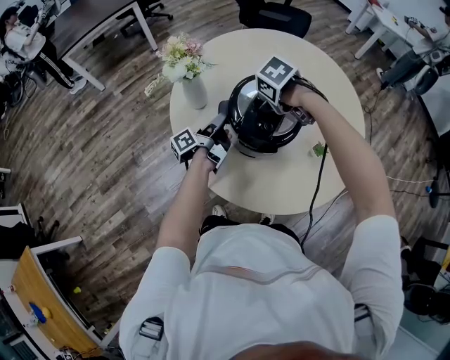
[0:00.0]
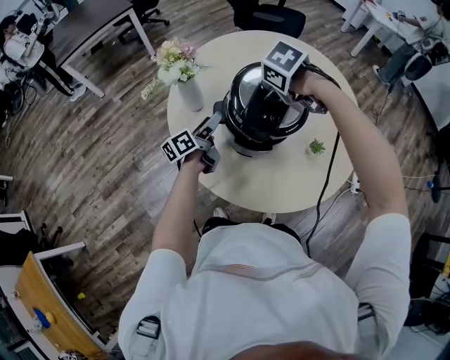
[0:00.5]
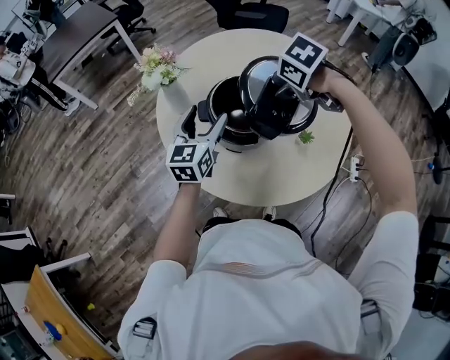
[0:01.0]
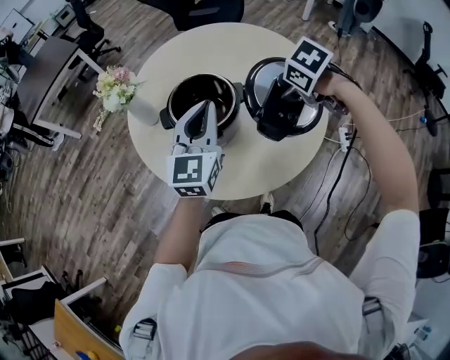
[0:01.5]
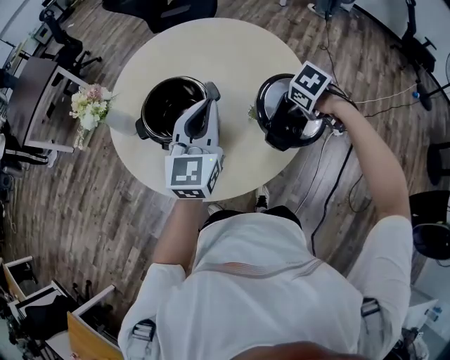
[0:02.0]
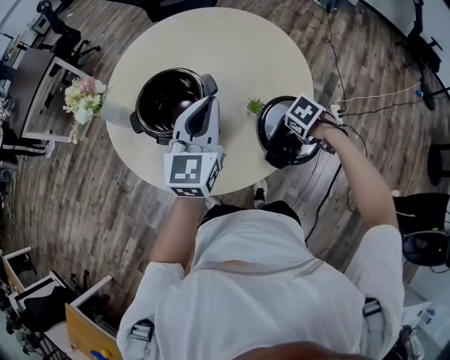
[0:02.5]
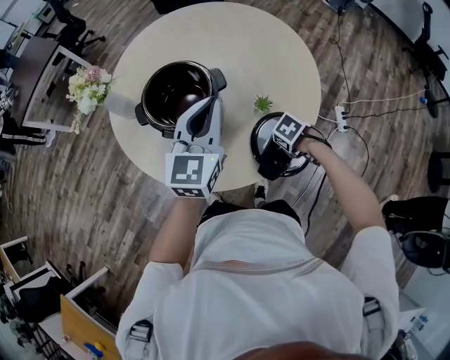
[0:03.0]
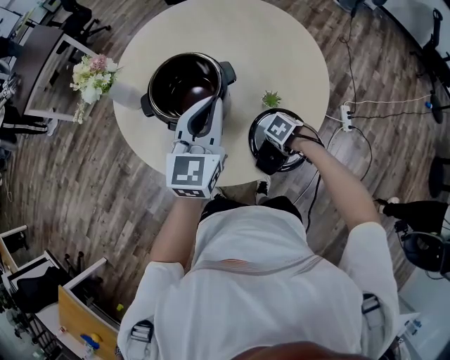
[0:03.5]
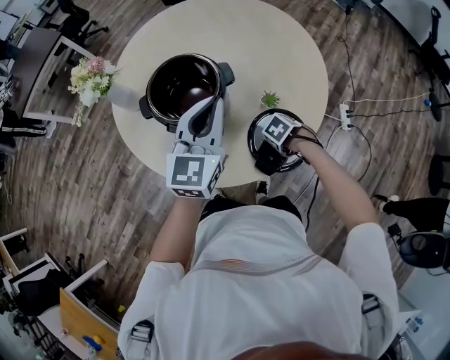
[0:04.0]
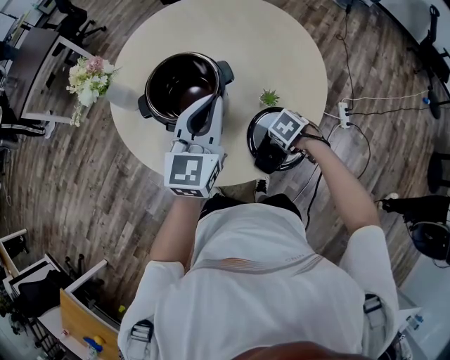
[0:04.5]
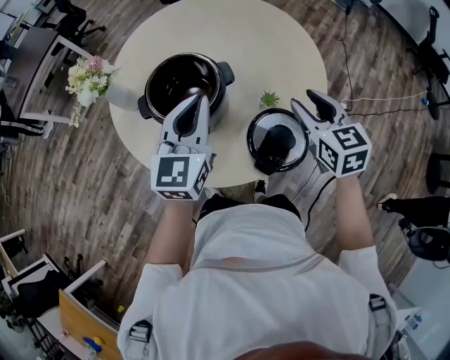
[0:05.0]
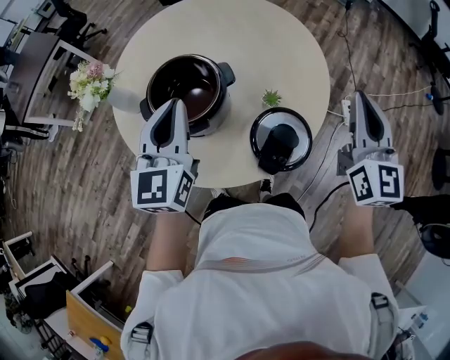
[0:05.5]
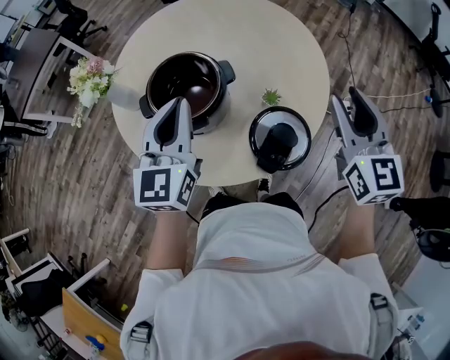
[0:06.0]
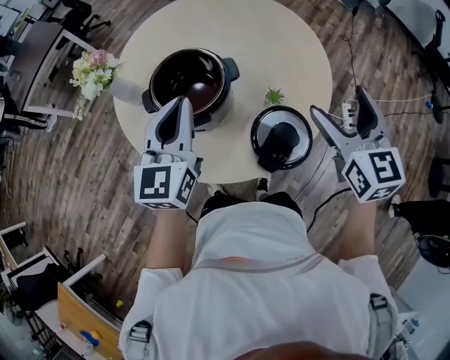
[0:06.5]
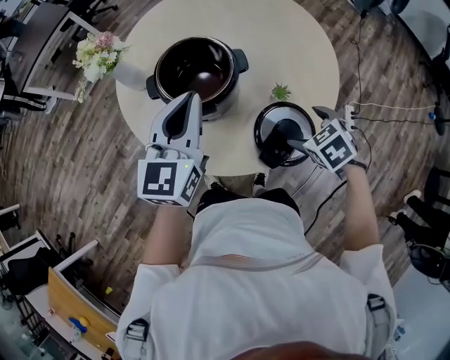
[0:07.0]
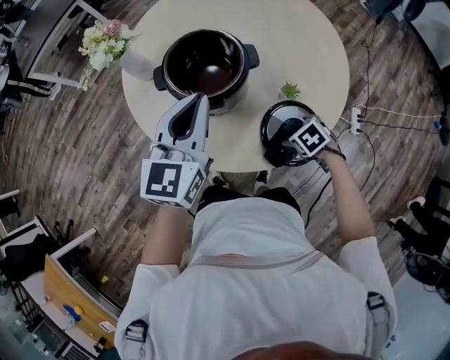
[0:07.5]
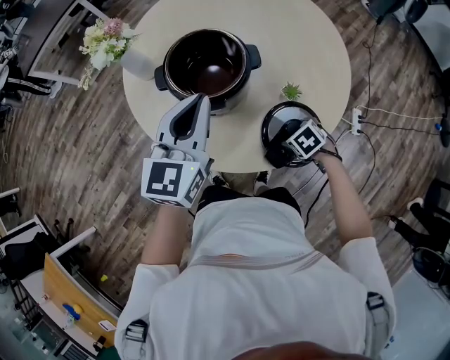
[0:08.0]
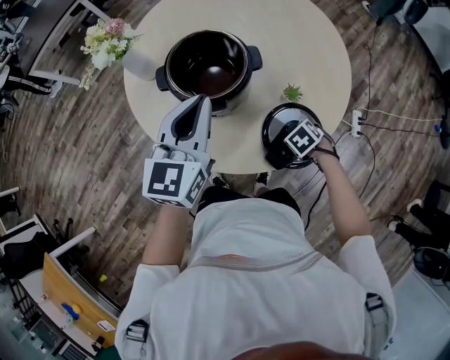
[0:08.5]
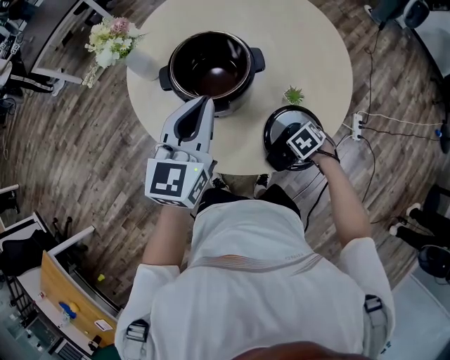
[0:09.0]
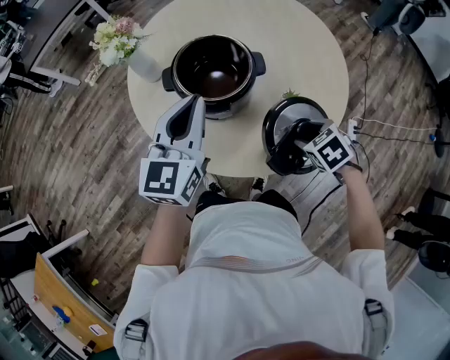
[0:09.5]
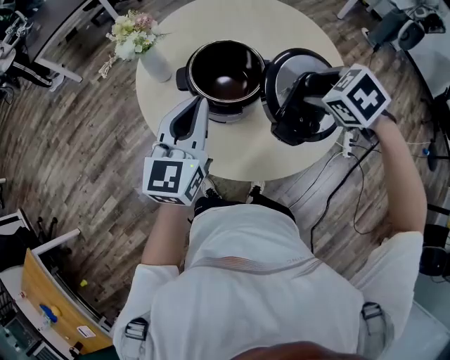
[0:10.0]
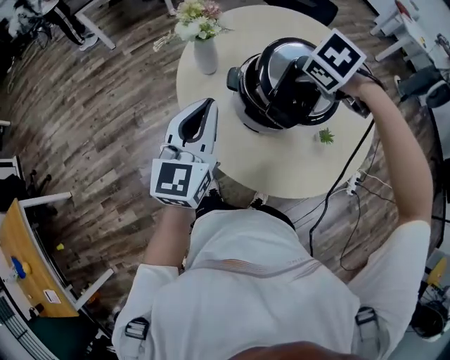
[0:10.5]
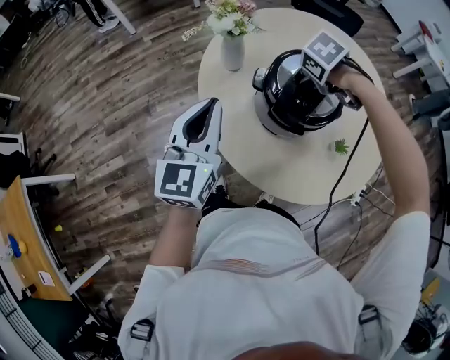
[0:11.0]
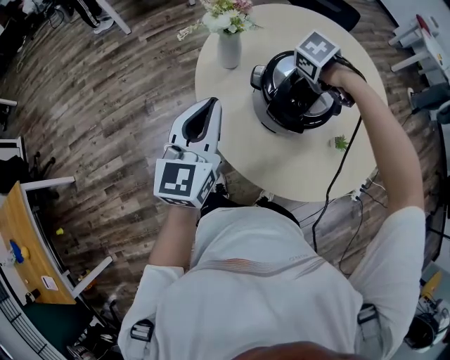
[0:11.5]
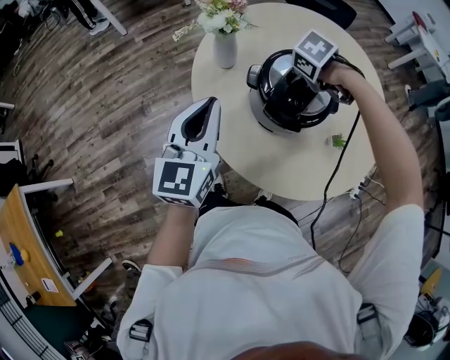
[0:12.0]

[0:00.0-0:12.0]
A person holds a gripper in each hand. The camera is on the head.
0:00.0 to 0:02.0: The right gripper moves about 10 cm upward and comes back, and changes its angle by some 20 degrees. The left gripper changes place by approximately 35 cm, rolls clockwise, seen from behind, by about 90 degrees, and opens and closes again.
0:02.0 to 0:04.0: The left gripper changes place by some 5 cm; the right gripper goes roughly 20 cm downward.
0:04.0 to 0:06.0: The right gripper goes approximately 40 cm upward, and tips its fingers upward by approximately 70 degrees, while the left gripper moves approximately 10 cm.
0:06.0 to 0:08.0: The right gripper is displaced downward by approximately 35 cm, points its fingers some 70 degrees further downward, and opens.
0:08.0 to 0:10.0: The left gripper changes place by some 5 cm, while the right gripper shifts roughly 30 cm upward, and swivels roughly 20 degrees.
0:10.0 to 0:12.0: The right gripper shifts by approximately 25 cm, and turns by some 20 degrees. Meanwhile the left gripper changes place by approximately 15 cm.

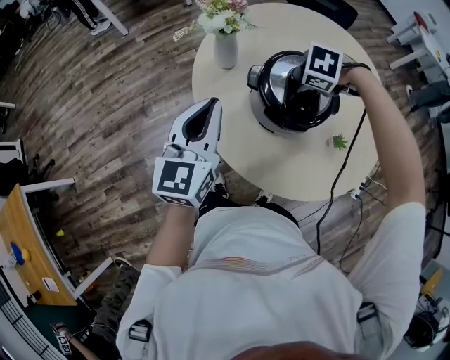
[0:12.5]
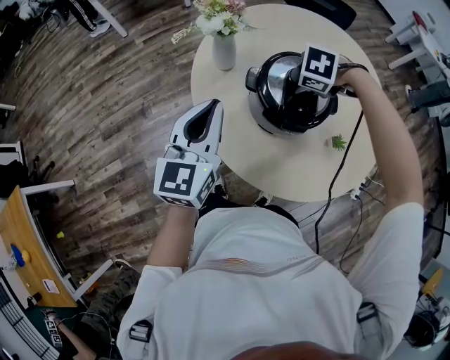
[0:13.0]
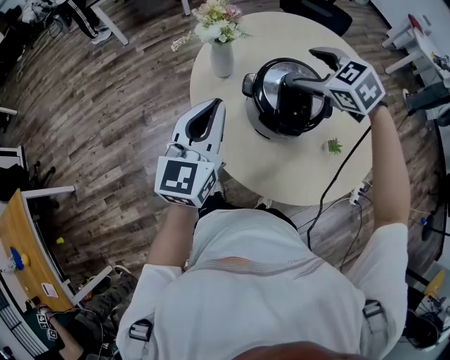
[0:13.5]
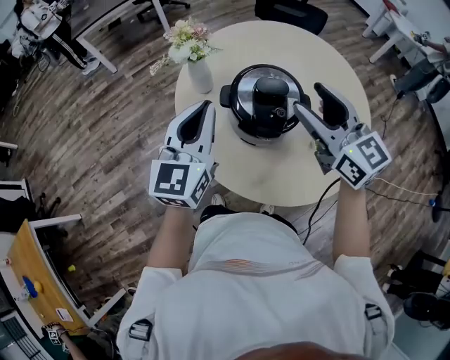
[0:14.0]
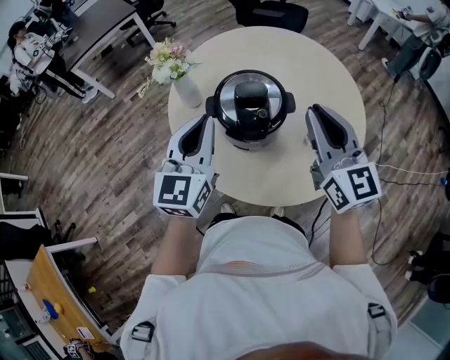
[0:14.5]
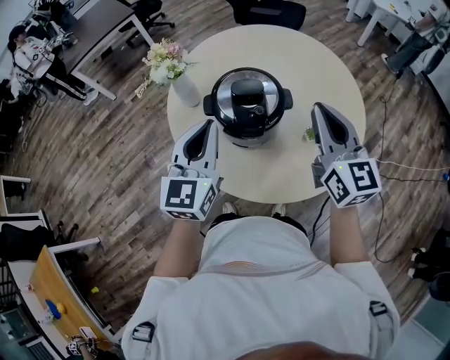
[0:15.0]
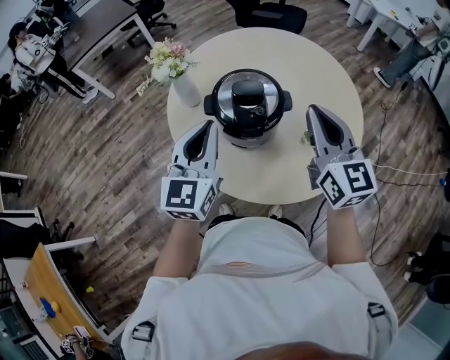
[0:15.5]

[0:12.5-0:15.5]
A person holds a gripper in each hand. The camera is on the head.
0:12.5 to 0:14.0: The left gripper moves about 10 cm. Meanwhile the right gripper shifts about 20 cm upward, and angles its fingers upward, by some 80 degrees.
0:14.0 to 0:15.5: The left gripper goes approximately 5 cm to the right; the right gripper moves to the right and backward, some 10 cm, turns by roughly 20 degrees, and closes up.

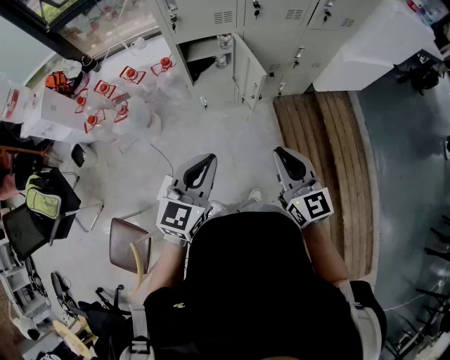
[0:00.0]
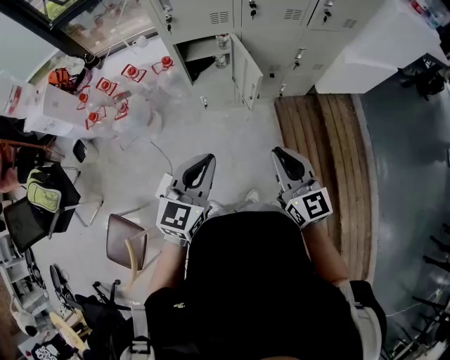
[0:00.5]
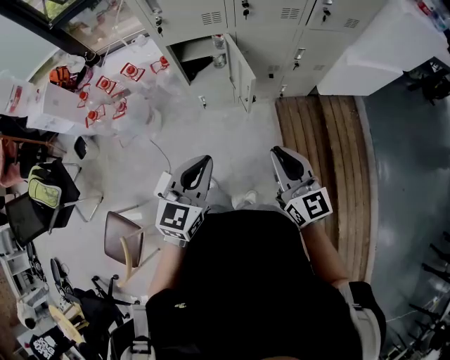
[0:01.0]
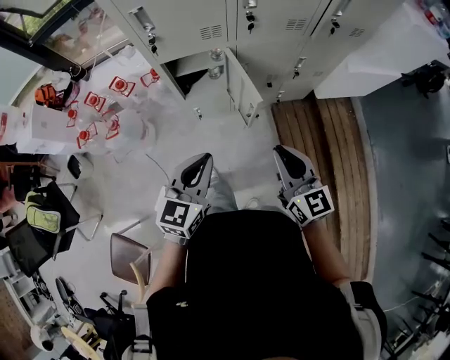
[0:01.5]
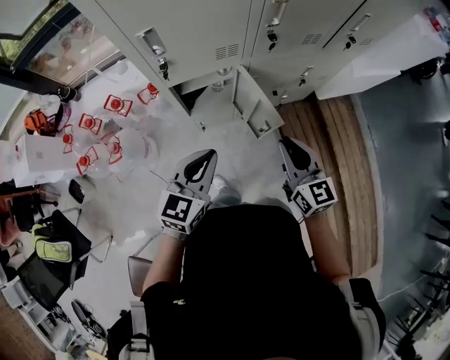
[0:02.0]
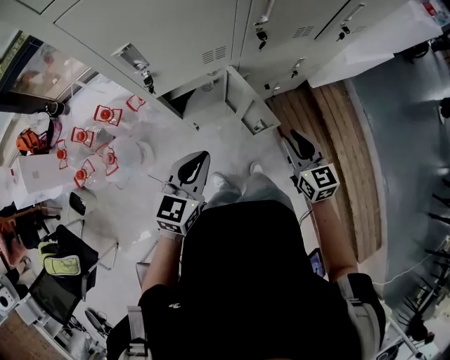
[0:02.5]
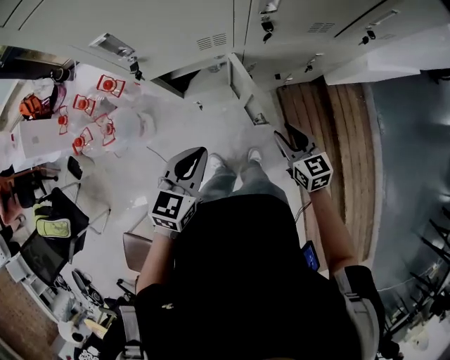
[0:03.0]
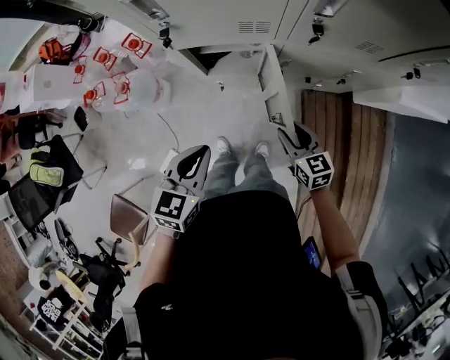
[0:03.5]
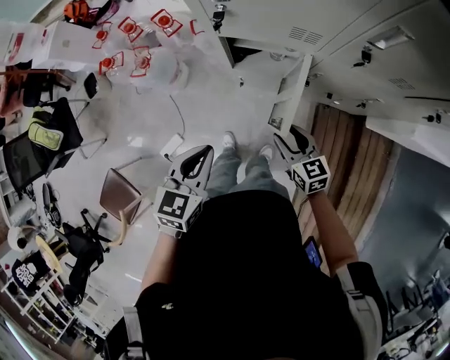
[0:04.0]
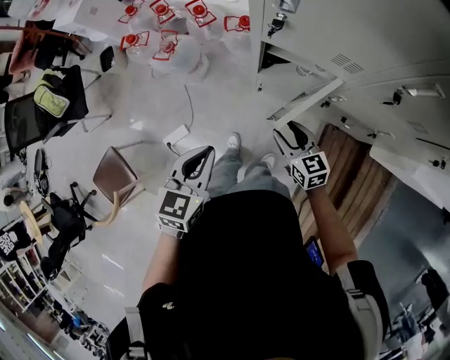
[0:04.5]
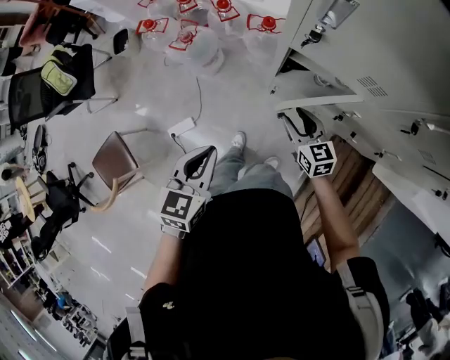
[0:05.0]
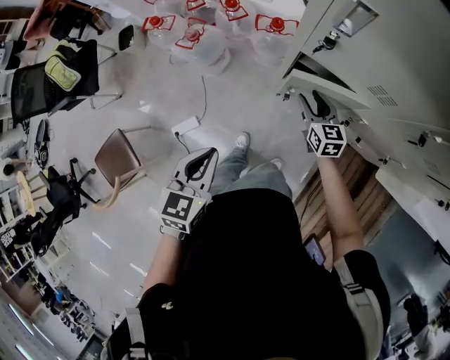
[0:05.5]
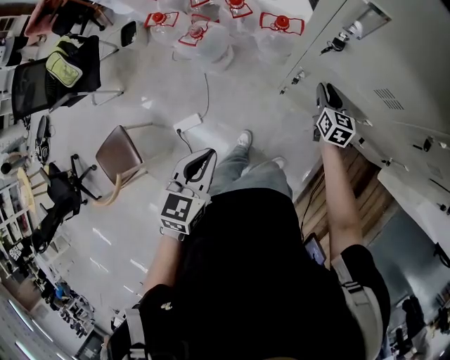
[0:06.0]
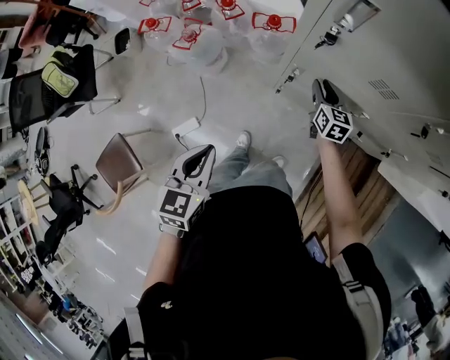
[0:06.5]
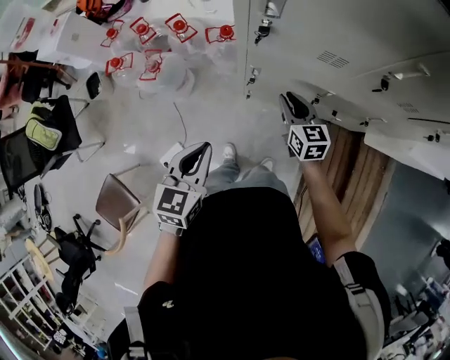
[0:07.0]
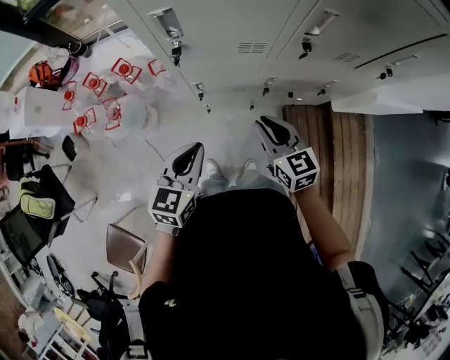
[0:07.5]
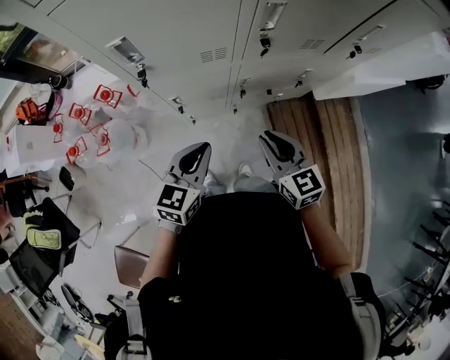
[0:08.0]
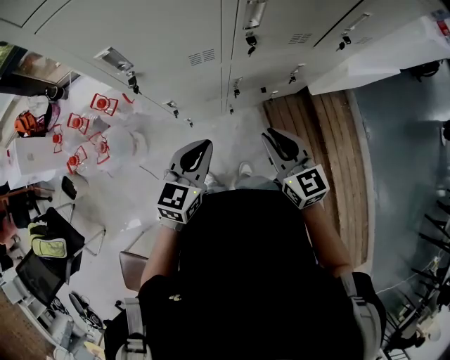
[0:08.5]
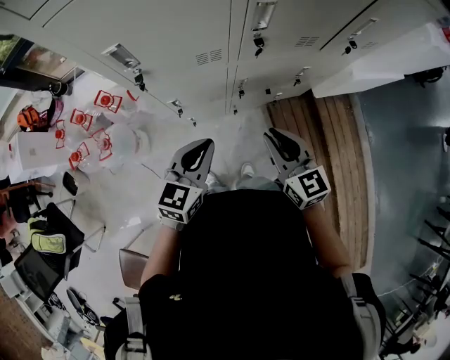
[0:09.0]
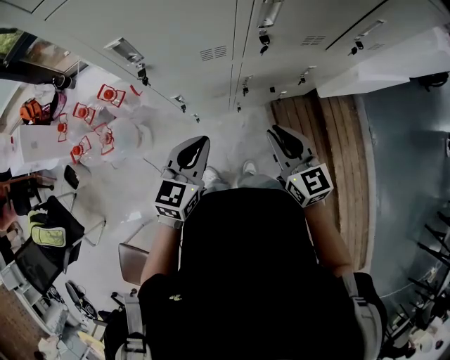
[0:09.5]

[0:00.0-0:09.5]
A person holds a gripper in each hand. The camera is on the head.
0:00.0 to 0:02.0: Both grippers move forward, about 25 cm.
0:02.0 to 0:04.0: The left gripper travels downward by about 5 cm, and swivels some 30 degrees. The right gripper travels downward by approximately 20 cm, rotates some 40 degrees, and opens.
0:04.0 to 0:05.5: The left gripper moves to the left, about 10 cm; the right gripper shifts roughly 20 cm forward.
0:05.5 to 0:07.5: The right gripper ends up about 25 cm from where it was, and closes its fingers, while the left gripper moves some 15 cm, and rotates some 30 degrees.
0:07.5 to 0:09.5: The left gripper goes about 5 cm to the right. Meanwhile the right gripper is displaced to the right and upward by approximately 10 cm.

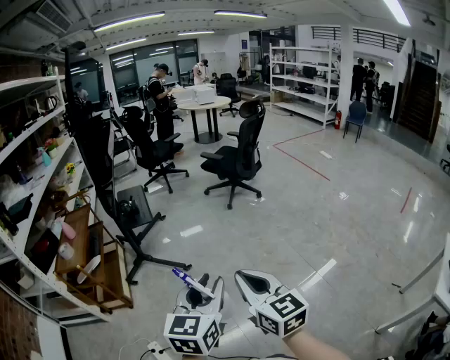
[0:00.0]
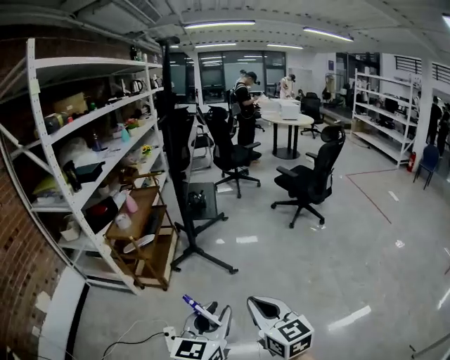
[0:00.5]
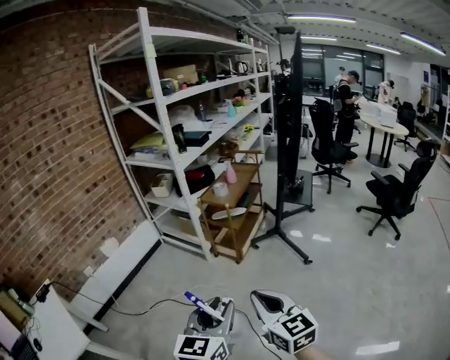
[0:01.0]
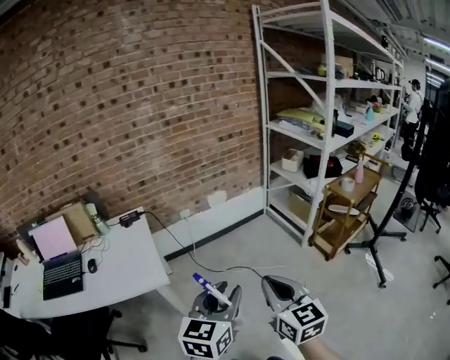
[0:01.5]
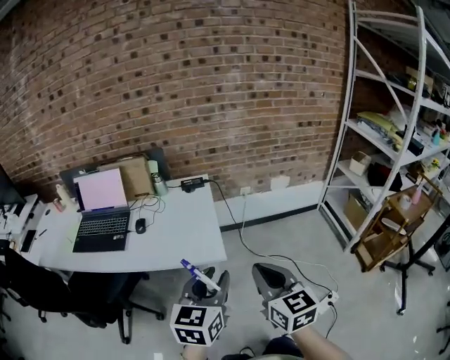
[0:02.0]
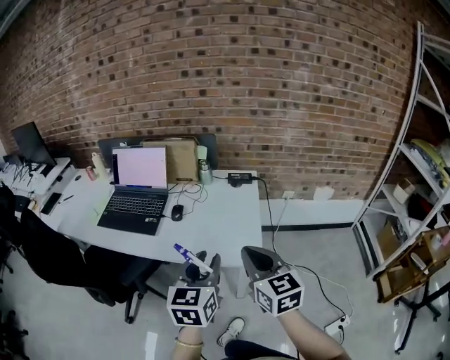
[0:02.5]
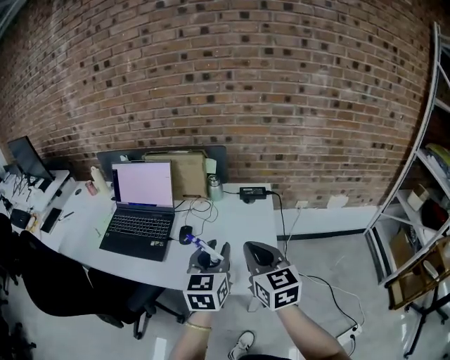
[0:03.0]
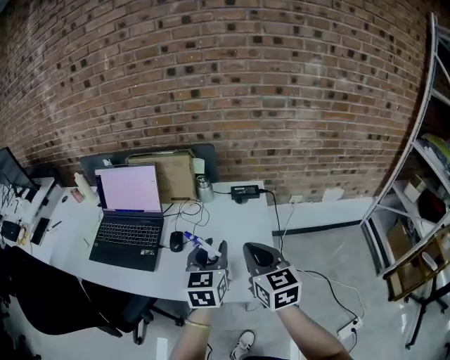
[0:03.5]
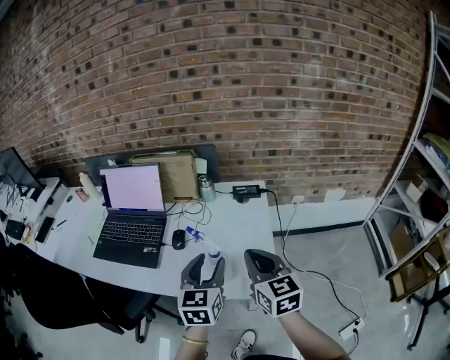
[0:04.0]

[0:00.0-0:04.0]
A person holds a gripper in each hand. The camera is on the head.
0:00.0 to 0:02.0: The pair of grippers is taken roughly 1 m. The right gripper changes its angle by roughly 100 degrees. Meanwhile the left gripper rotates some 100 degrees.
0:02.0 to 0:04.0: The grippers both shift forward and to the left by roughly 30 cm. The left gripper opens its fingers.
